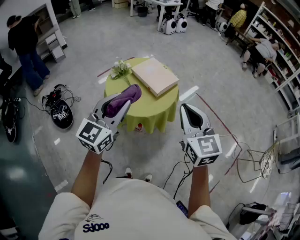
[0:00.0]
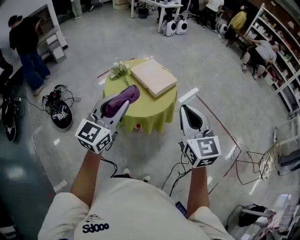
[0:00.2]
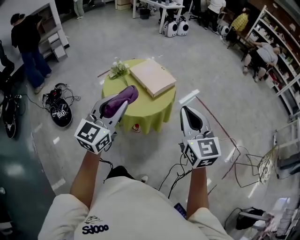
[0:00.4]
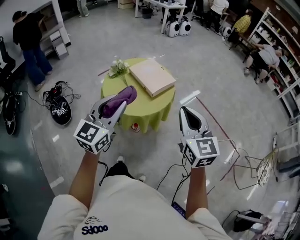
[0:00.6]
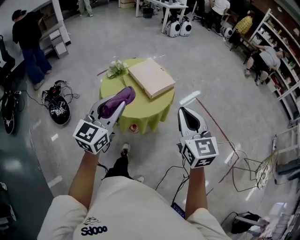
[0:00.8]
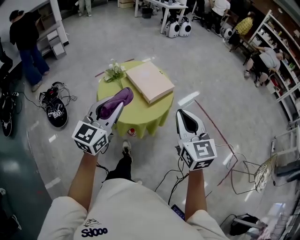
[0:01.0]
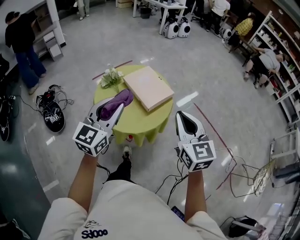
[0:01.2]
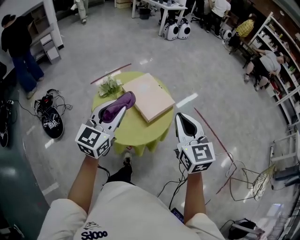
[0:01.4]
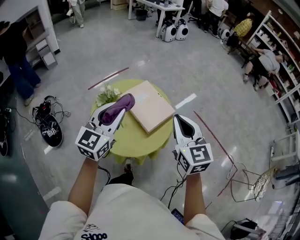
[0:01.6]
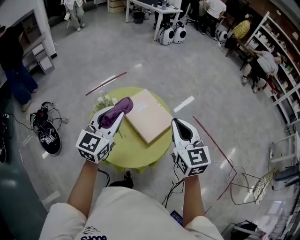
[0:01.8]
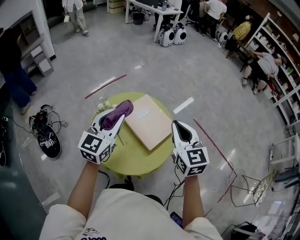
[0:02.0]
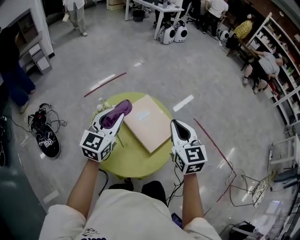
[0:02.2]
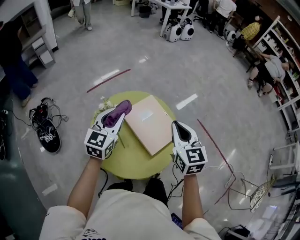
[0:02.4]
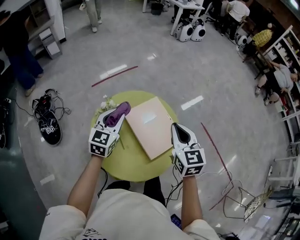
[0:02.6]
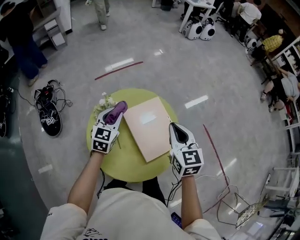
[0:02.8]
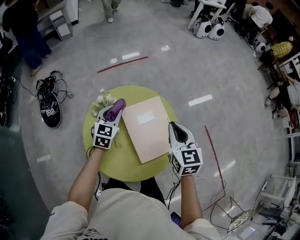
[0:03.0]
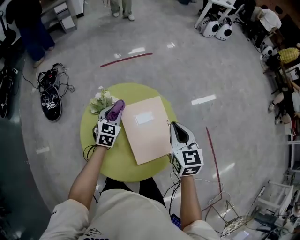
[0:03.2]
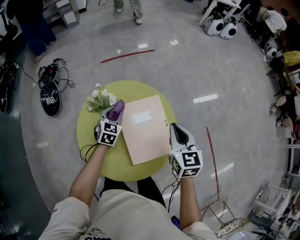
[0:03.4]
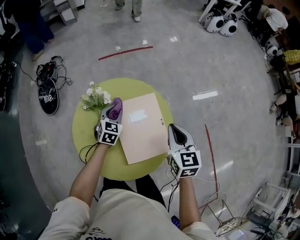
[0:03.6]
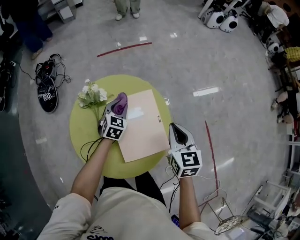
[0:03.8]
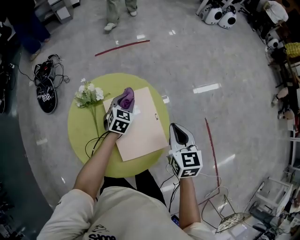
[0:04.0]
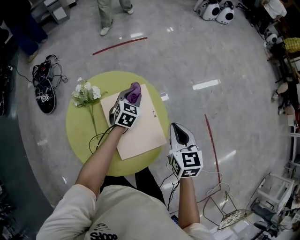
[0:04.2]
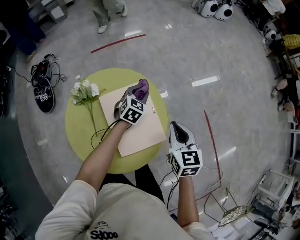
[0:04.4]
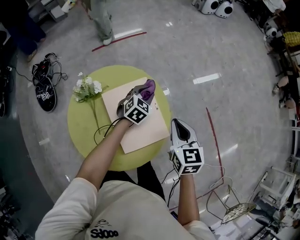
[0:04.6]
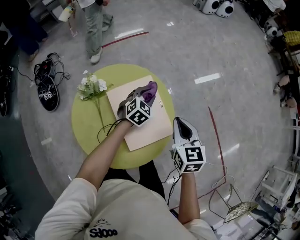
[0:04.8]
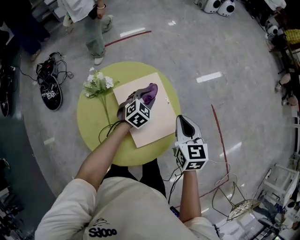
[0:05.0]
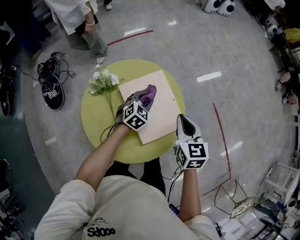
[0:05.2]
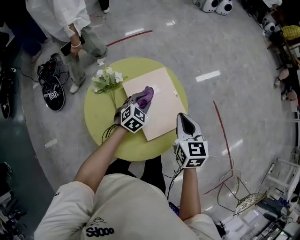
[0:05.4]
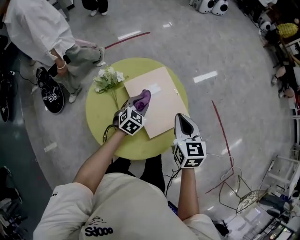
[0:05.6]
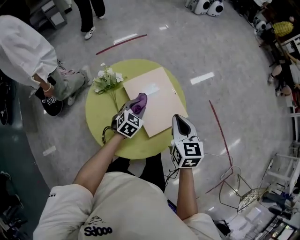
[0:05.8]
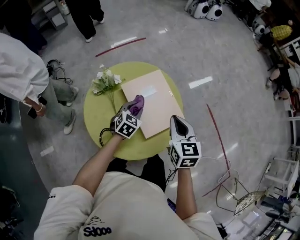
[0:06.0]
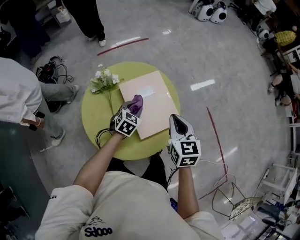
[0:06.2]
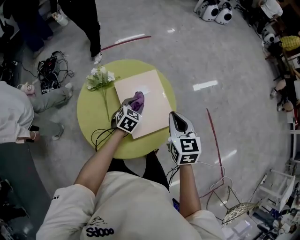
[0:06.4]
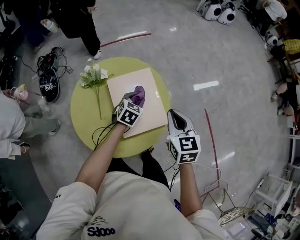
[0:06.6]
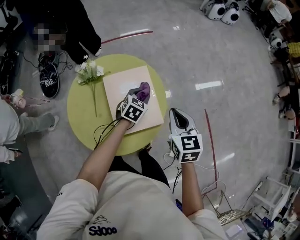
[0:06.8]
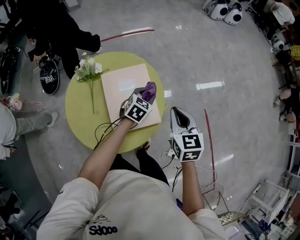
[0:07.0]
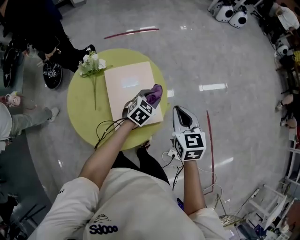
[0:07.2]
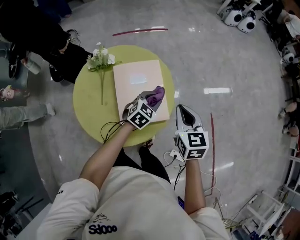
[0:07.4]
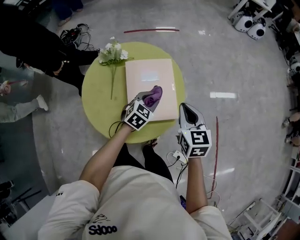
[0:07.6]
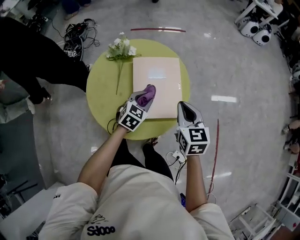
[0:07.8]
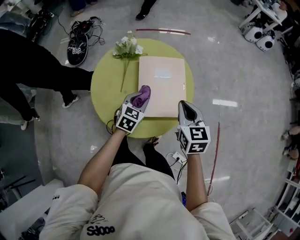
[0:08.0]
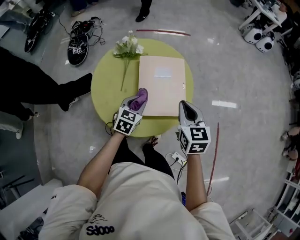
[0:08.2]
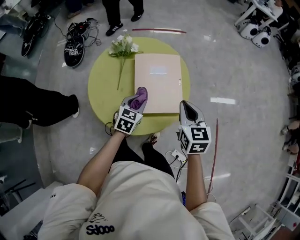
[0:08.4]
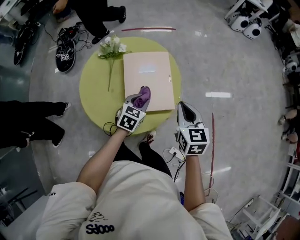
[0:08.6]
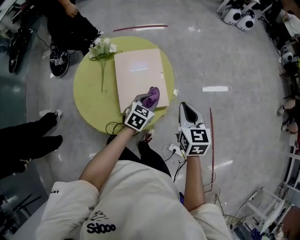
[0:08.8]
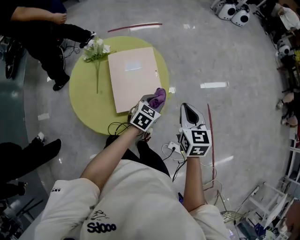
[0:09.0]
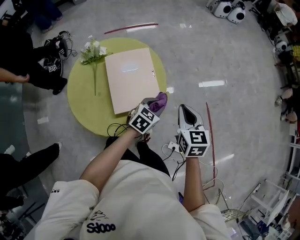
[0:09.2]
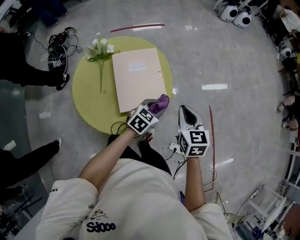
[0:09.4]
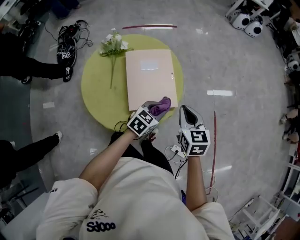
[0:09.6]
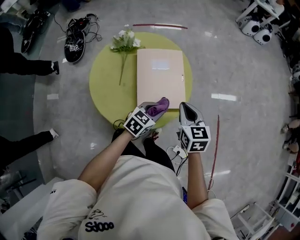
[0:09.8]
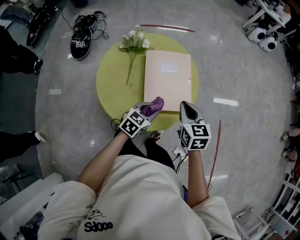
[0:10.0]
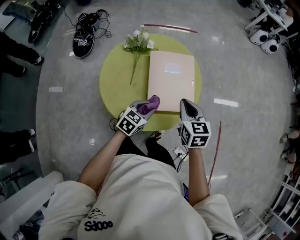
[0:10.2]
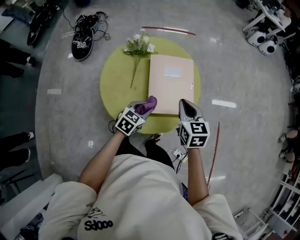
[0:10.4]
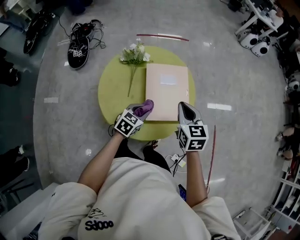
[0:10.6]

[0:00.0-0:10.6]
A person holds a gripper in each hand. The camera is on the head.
0:00.0 to 0:01.6: The two grippers go roughly 25 cm forward.
0:01.6 to 0:03.0: The left gripper shifts roughly 30 cm downward and forward, and turns by approximately 40 degrees, while the right gripper heads forward and downward, covering approximately 25 cm.
0:03.0 to 0:04.6: The left gripper is displaced to the right and downward by about 25 cm, and rotates some 20 degrees. The right gripper heads to the right and downward, covering about 10 cm.
0:04.6 to 0:06.0: The right gripper is displaced backward and to the left by approximately 10 cm. Meanwhile the left gripper travels backward and to the left by approximately 20 cm.
0:06.0 to 0:07.6: The right gripper is displaced to the right and forward by some 10 cm, and rotates roughly 20 degrees. Meanwhile the left gripper is displaced to the right by about 10 cm.
0:07.6 to 0:09.0: The two grippers go approximately 10 cm to the right and backward.
0:09.0 to 0:10.6: The grippers both shift to the left by some 20 cm.

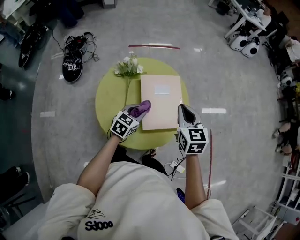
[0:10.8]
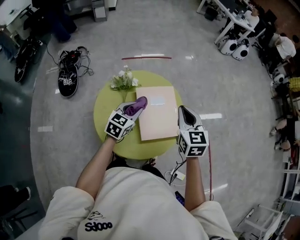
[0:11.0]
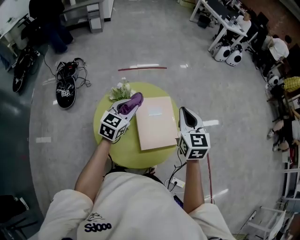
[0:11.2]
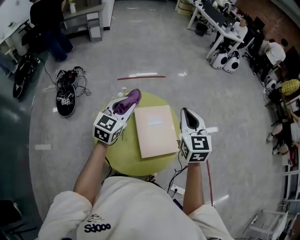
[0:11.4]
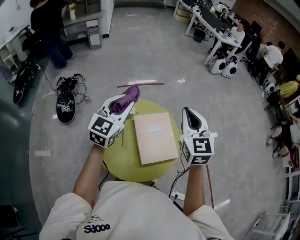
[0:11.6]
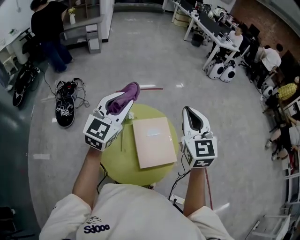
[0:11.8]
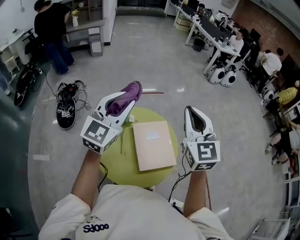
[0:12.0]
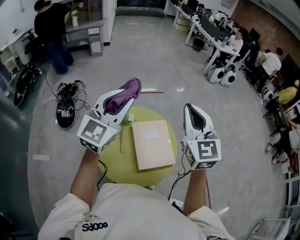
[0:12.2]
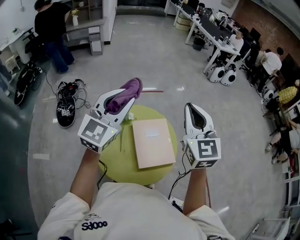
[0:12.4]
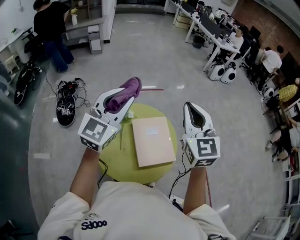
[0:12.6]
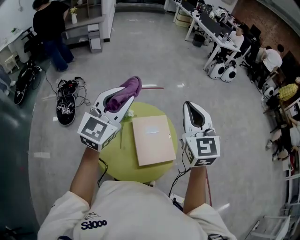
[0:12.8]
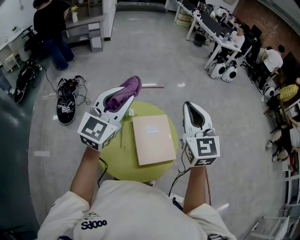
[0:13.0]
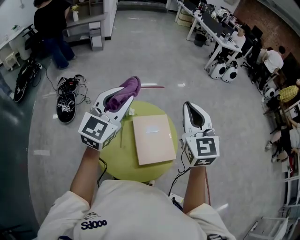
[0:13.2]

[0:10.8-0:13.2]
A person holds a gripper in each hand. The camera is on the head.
0:10.8 to 0:12.0: The right gripper goes roughly 25 cm upward, and turns by about 30 degrees; the left gripper is displaced upward by roughly 35 cm, and tips its fingers upward by approximately 40 degrees.
0:12.0 to 0:13.2: The grippers move only a little.

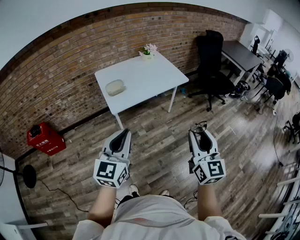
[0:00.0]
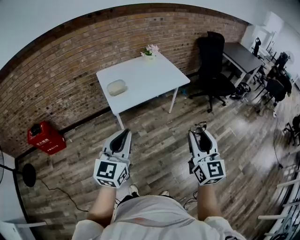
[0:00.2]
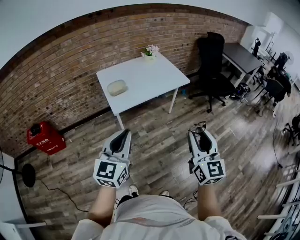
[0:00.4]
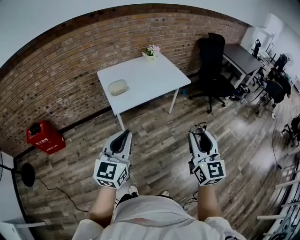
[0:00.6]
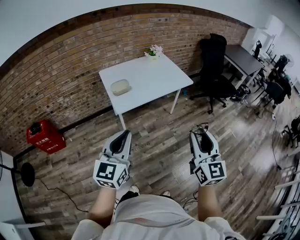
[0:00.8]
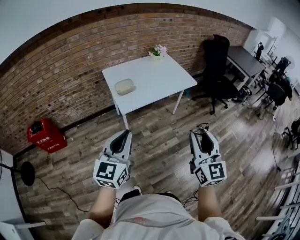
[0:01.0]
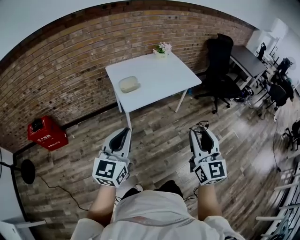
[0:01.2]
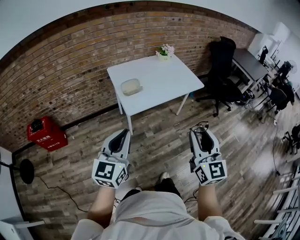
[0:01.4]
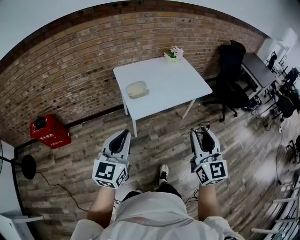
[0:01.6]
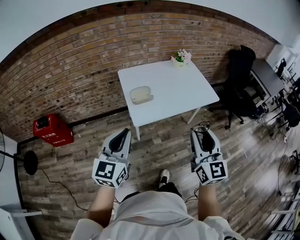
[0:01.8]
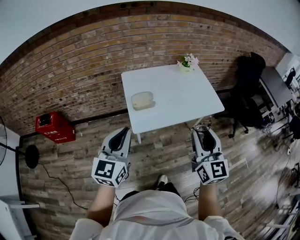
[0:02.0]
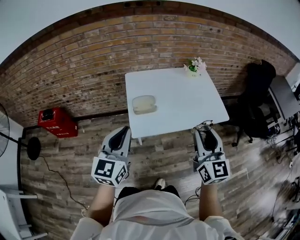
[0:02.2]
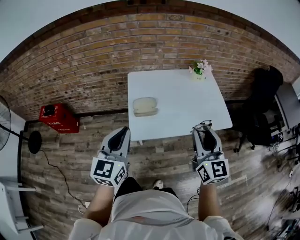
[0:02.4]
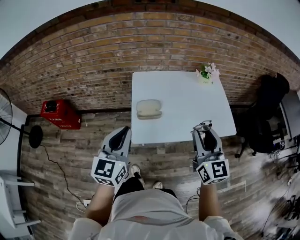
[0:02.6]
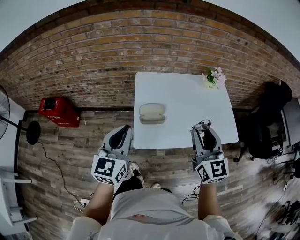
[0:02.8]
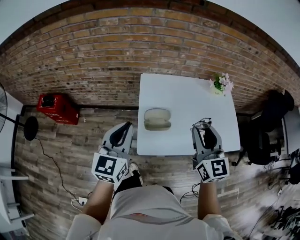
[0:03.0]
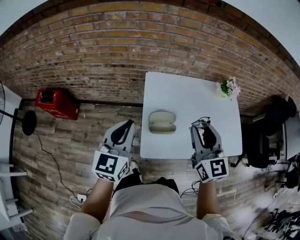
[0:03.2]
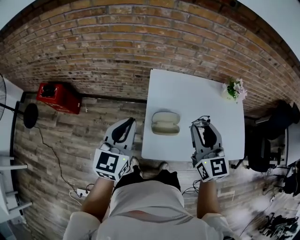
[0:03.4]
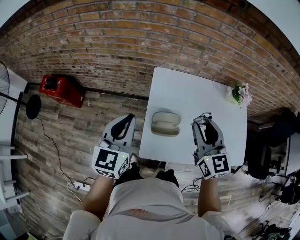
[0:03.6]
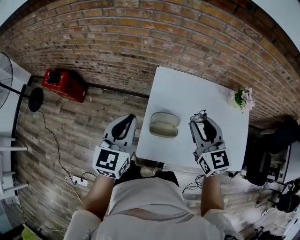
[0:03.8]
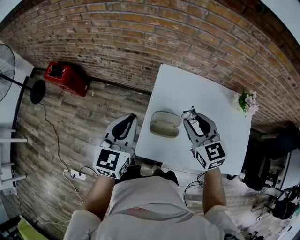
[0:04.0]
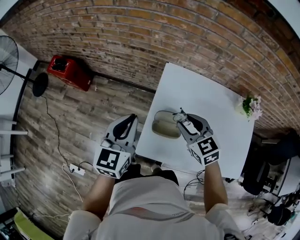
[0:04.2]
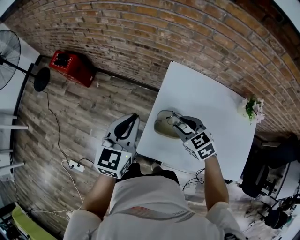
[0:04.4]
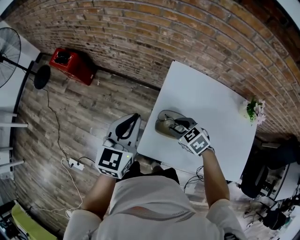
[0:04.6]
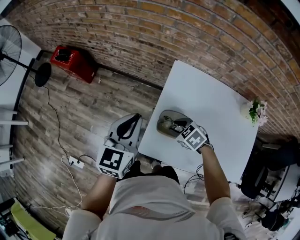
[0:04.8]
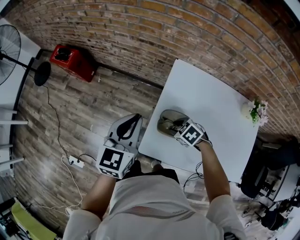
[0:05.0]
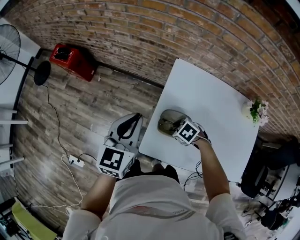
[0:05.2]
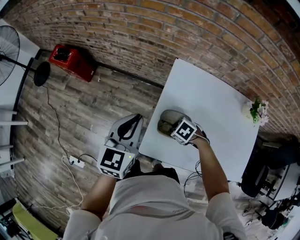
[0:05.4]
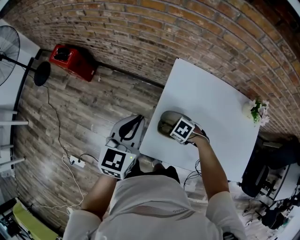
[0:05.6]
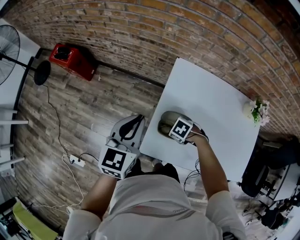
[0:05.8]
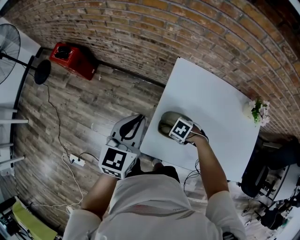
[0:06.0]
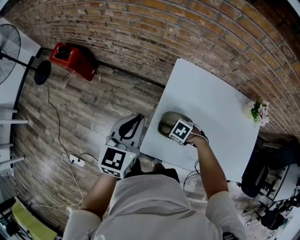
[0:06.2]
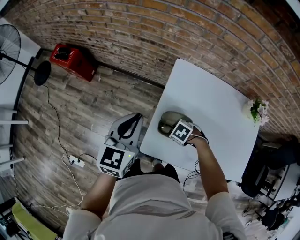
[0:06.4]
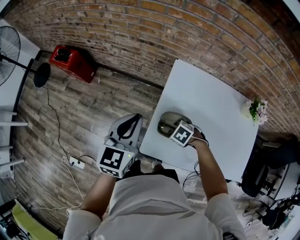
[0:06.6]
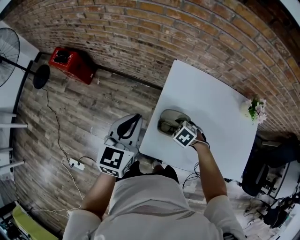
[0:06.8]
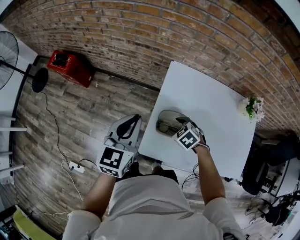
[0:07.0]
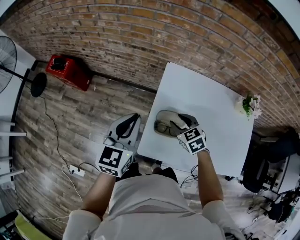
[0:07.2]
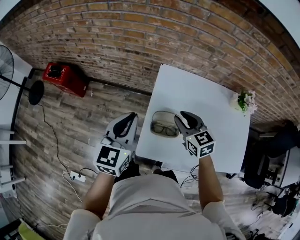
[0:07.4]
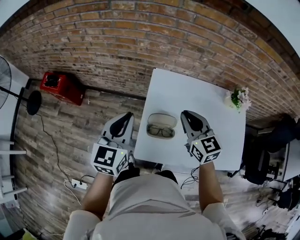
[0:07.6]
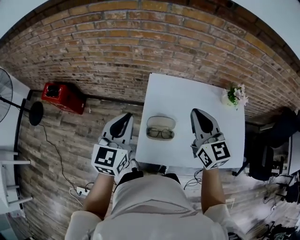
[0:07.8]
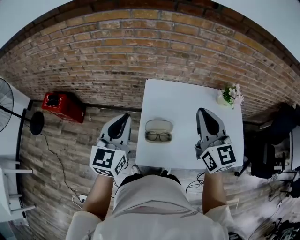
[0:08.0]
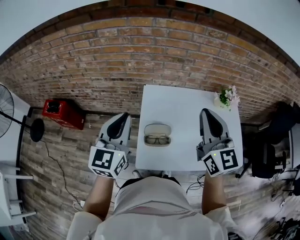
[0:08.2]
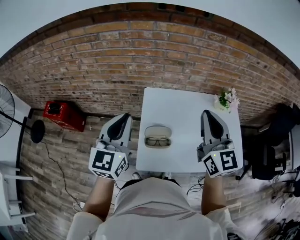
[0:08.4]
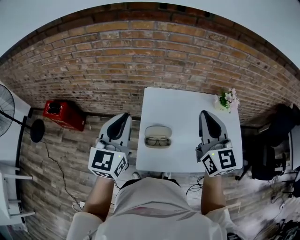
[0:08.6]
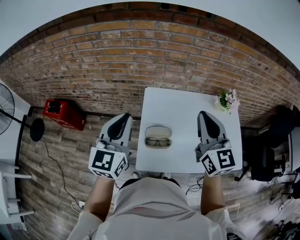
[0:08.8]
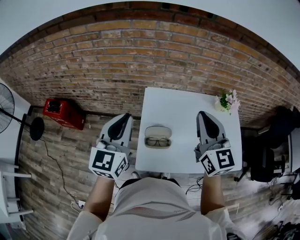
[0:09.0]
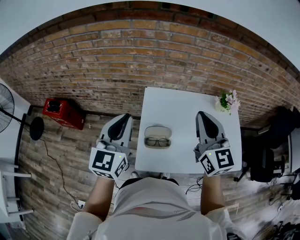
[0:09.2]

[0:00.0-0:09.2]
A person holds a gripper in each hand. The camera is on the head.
0:00.0 to 0:01.6: The two grippers go some 20 cm to the left and forward.
0:01.6 to 0:03.0: The two grippers go about 35 cm forward. The left gripper turns by some 20 degrees. The right gripper turns by about 30 degrees.
0:03.0 to 0:04.6: The left gripper ends up roughly 10 cm from where it was. The right gripper is displaced downward by about 25 cm, and tilts its fingers about 50 degrees downward.
0:04.6 to 0:06.2: The right gripper goes approximately 15 cm downward, and rotates roughly 30 degrees.
0:06.2 to 0:07.6: The left gripper heads upward, covering about 5 cm, while the right gripper shifts some 30 cm upward, points its fingers approximately 60 degrees further upward, and closes.
0:07.6 to 0:09.2: The right gripper moves upward and to the right, about 15 cm, and changes its angle by some 20 degrees, while the left gripper is displaced upward by some 10 cm.

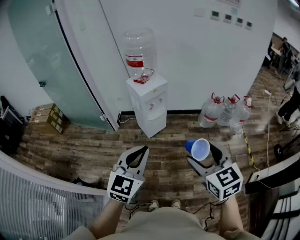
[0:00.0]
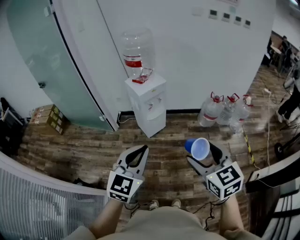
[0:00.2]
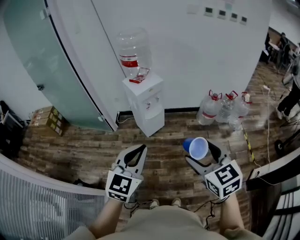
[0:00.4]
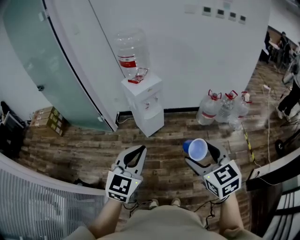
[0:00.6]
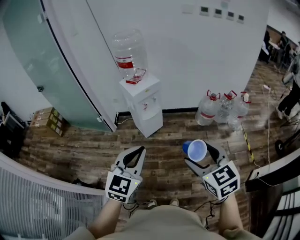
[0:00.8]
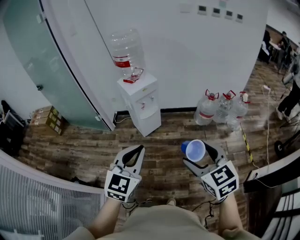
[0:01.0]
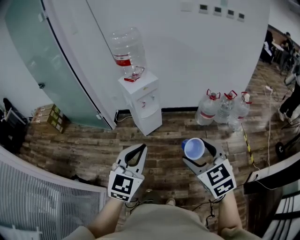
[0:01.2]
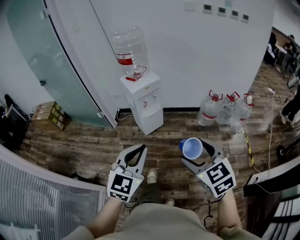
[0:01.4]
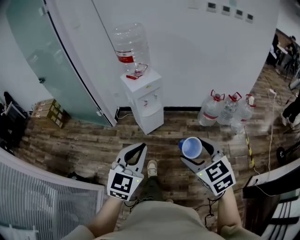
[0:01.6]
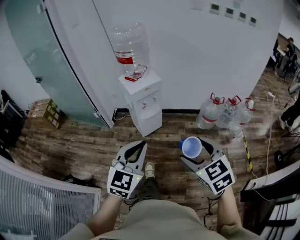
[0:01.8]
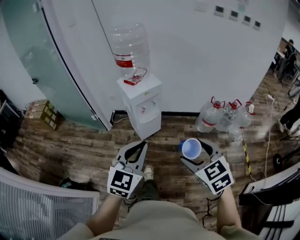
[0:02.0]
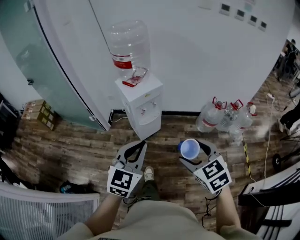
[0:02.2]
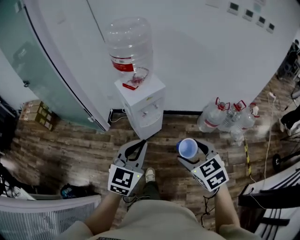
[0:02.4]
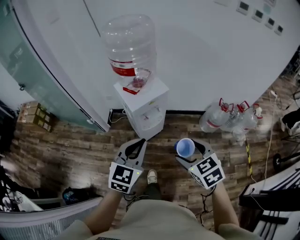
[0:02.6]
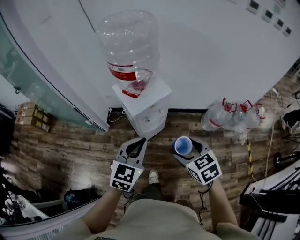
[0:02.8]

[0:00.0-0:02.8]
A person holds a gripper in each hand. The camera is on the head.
0:00.0 to 0:01.4: Both grippers move to the right, some 10 cm.
0:01.4 to 0:02.8: Both grippers are carried forward, some 40 cm. The right gripper swivels some 20 degrees.
